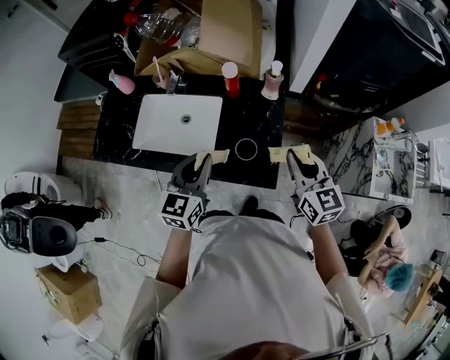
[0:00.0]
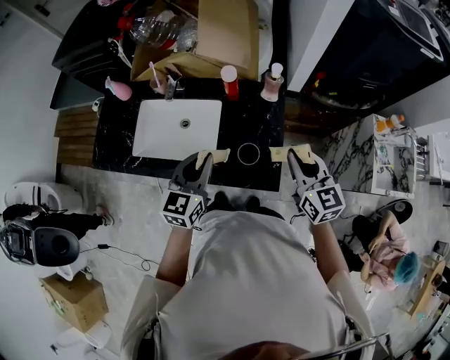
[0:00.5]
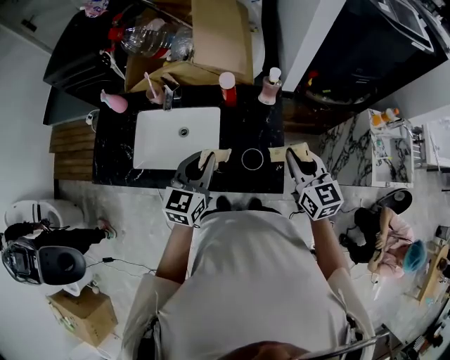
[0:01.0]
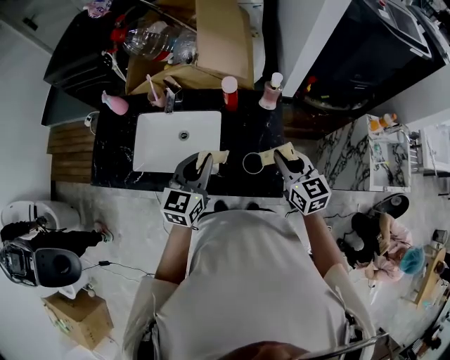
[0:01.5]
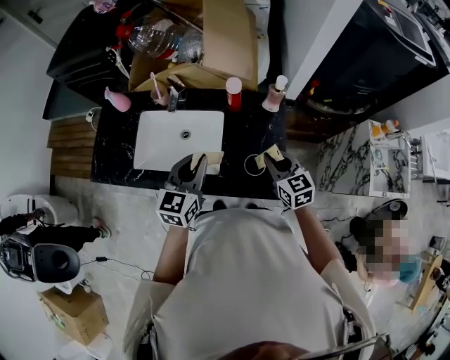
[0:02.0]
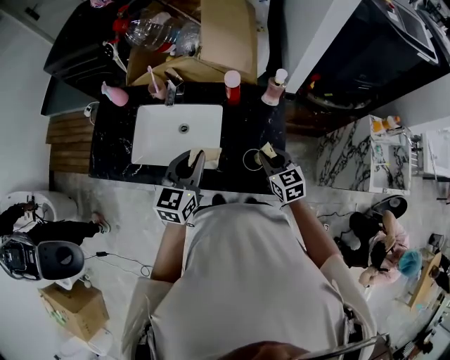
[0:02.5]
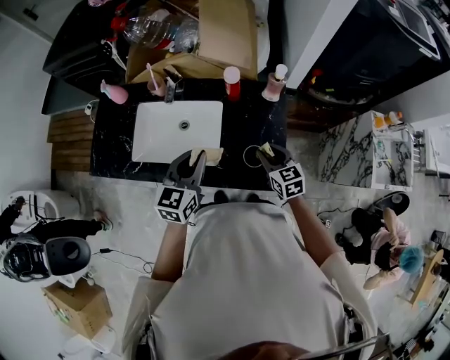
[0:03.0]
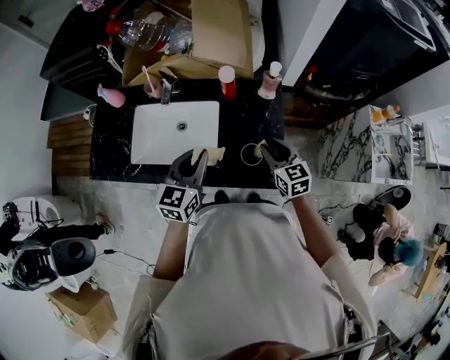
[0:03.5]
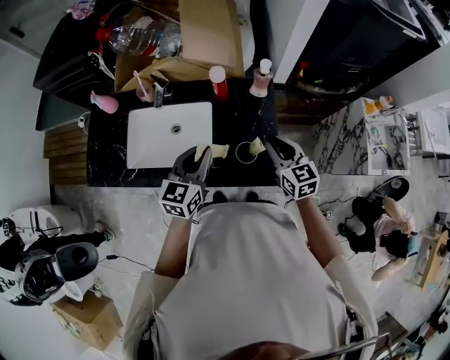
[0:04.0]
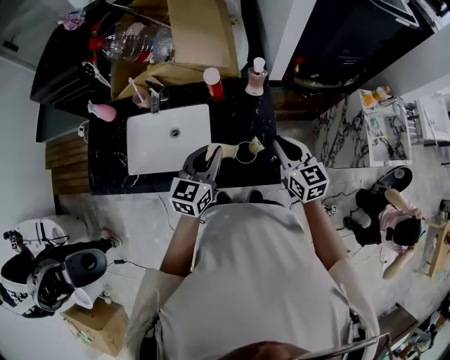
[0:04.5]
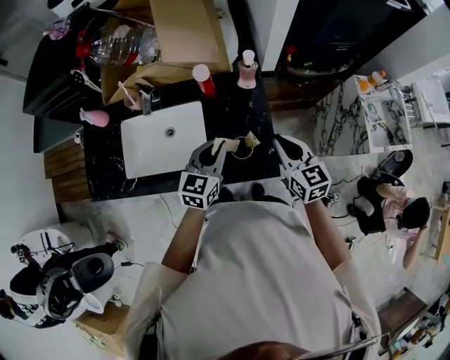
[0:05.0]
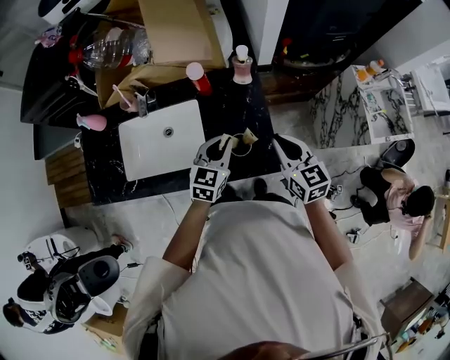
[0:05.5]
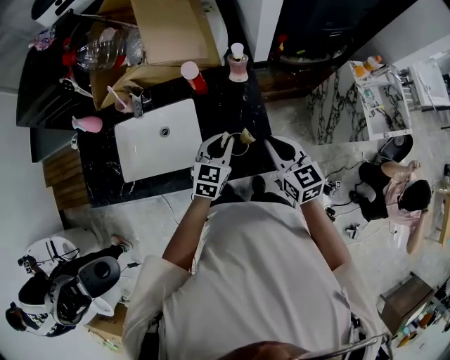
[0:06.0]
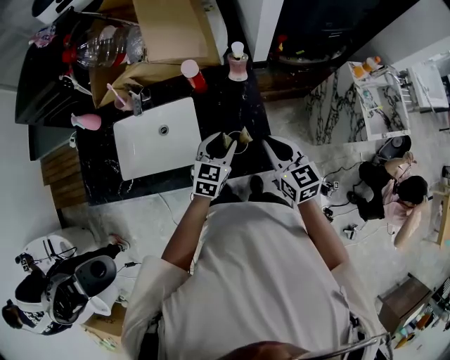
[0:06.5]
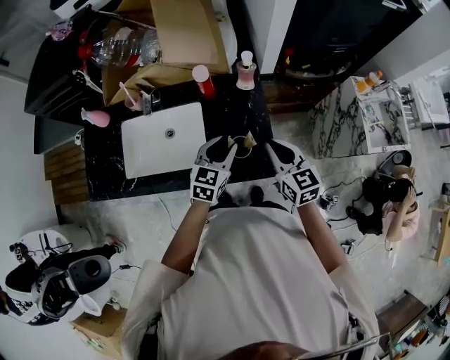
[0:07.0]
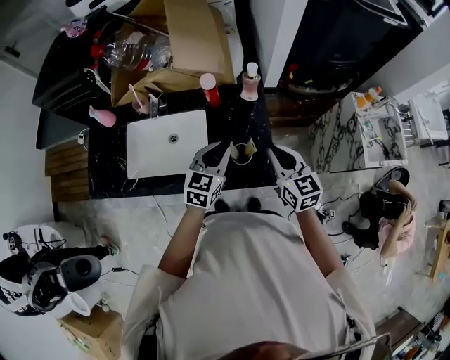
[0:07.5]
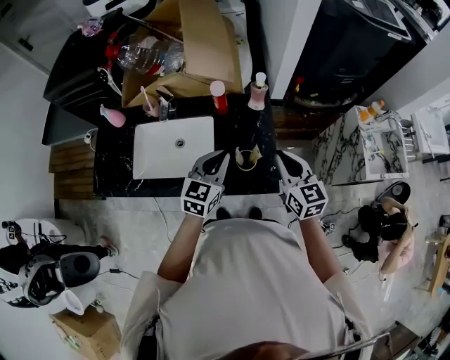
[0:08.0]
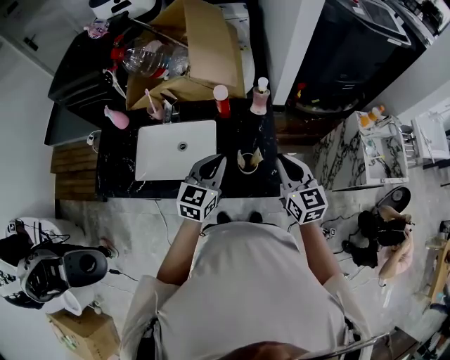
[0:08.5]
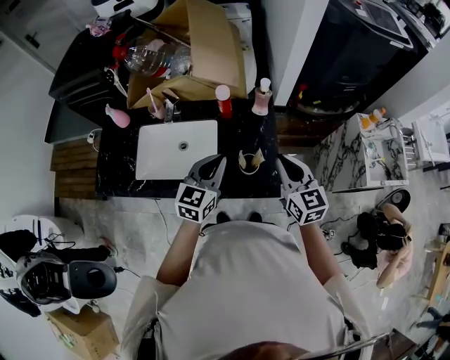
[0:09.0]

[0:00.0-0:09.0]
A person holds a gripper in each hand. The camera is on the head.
0:00.0 to 0:02.0: The left gripper travels forward and to the left by some 10 cm; the right gripper heads downward, to the left and forward, covering roughly 15 cm.
0:02.0 to 0:04.5: Both grippers travel together to the right, roughly 5 cm.
0:04.5 to 0:07.0: The left gripper is displaced downward and to the right by about 10 cm, and opens up.
0:07.0 to 0:09.0: The left gripper goes roughly 10 cm upward and to the left, and closes up. Meanwhile the right gripper travels upward by approximately 5 cm.

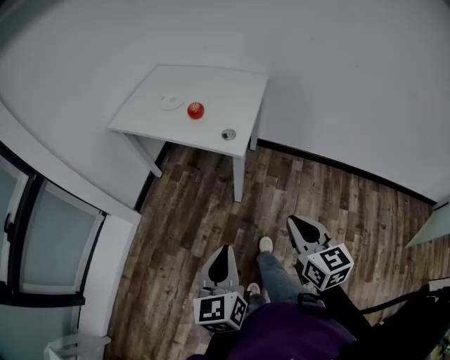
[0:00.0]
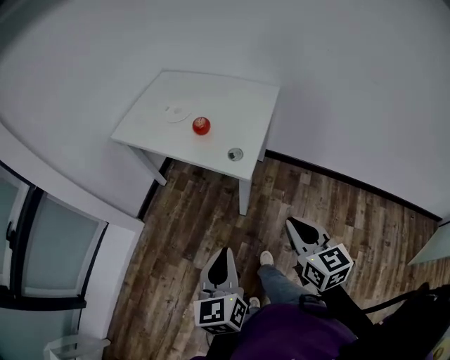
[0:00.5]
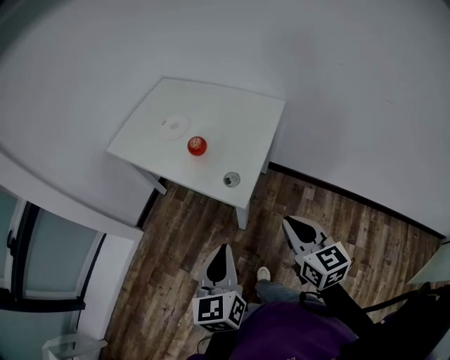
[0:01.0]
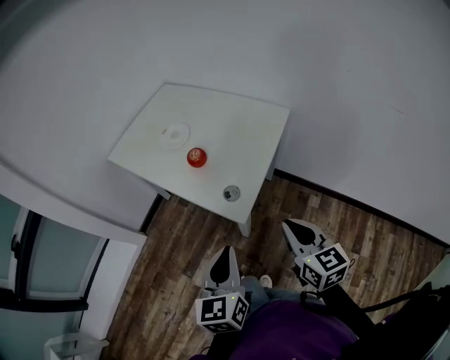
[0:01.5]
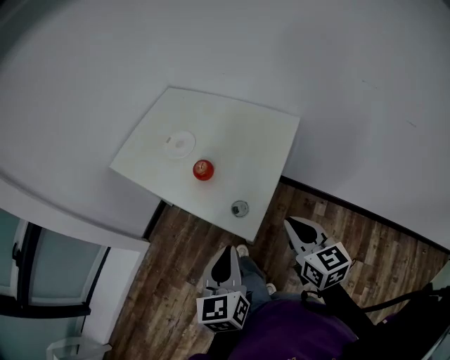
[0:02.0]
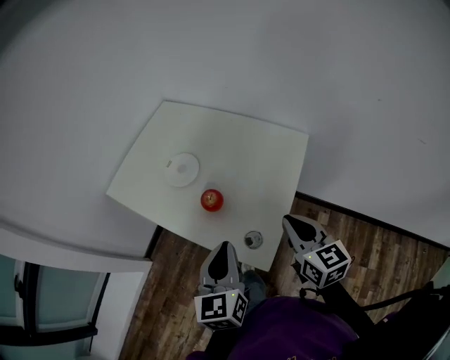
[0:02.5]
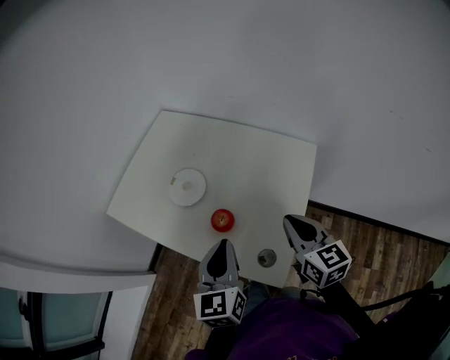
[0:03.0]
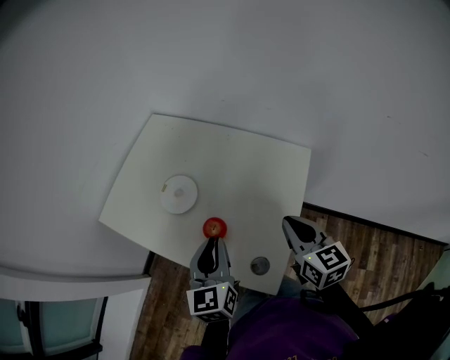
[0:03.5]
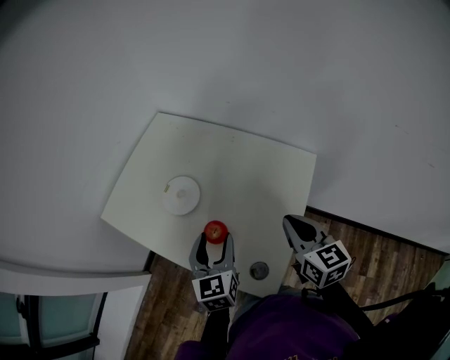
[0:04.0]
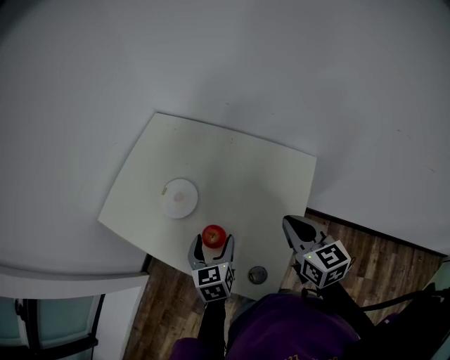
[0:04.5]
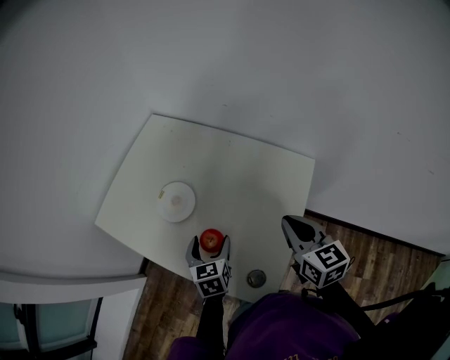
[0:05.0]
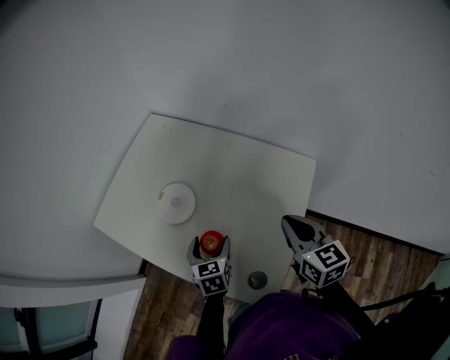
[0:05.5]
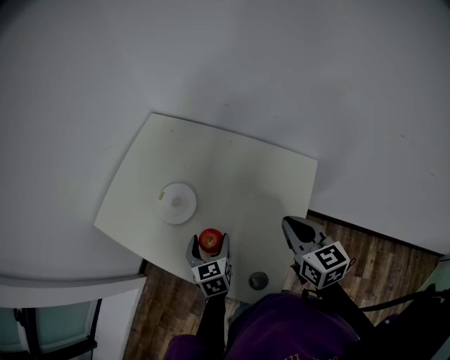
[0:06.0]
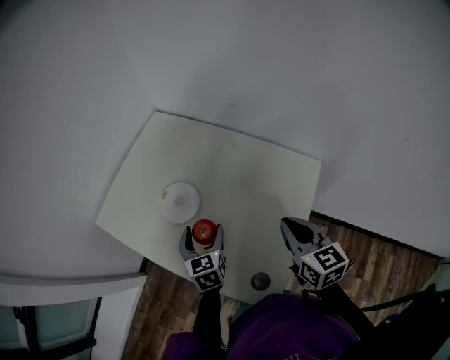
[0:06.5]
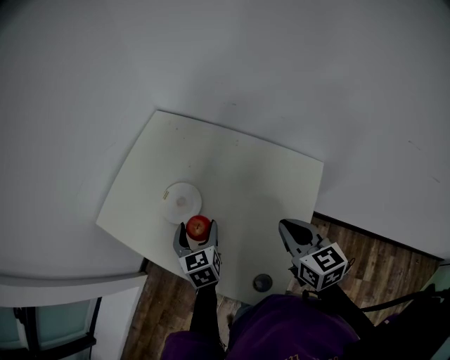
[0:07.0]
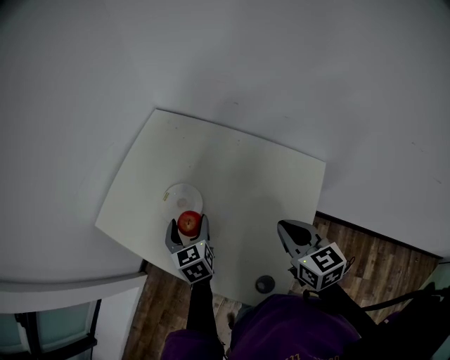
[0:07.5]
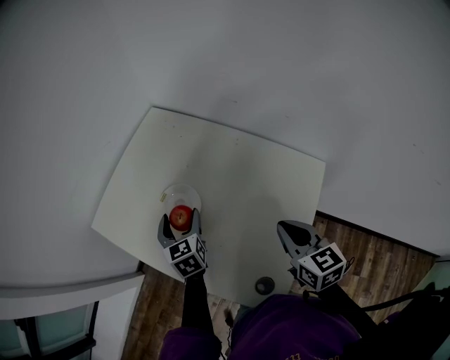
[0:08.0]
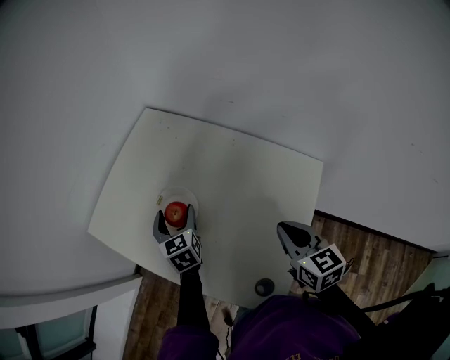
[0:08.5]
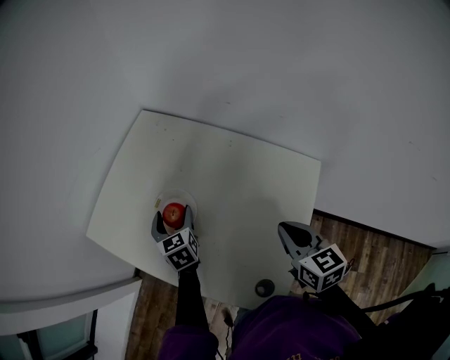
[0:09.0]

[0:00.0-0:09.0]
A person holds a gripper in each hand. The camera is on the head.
0:00.0 to 0:02.0: The grippers both shift forward by about 35 cm.
0:02.0 to 0:04.5: Both grippers travel together forward, roughly 30 cm. The left gripper opens up.
0:04.5 to 0:07.0: The left gripper goes roughly 10 cm forward and to the left.
0:07.0 to 0:09.0: The left gripper moves forward, roughly 10 cm.

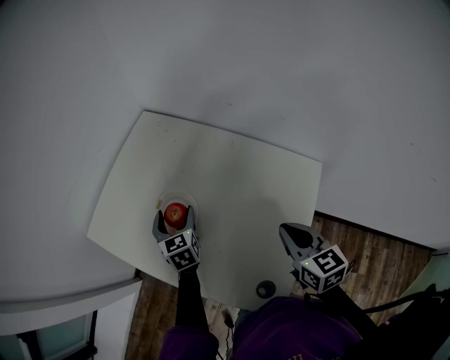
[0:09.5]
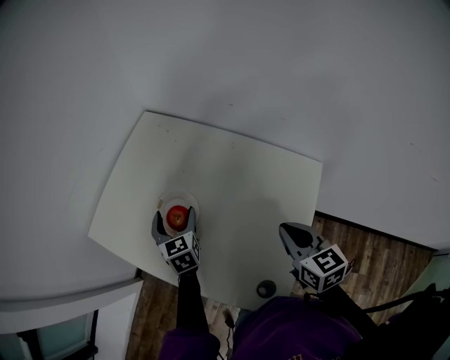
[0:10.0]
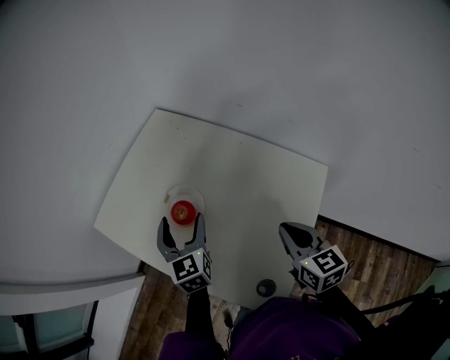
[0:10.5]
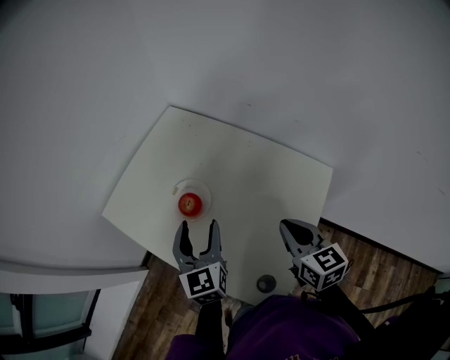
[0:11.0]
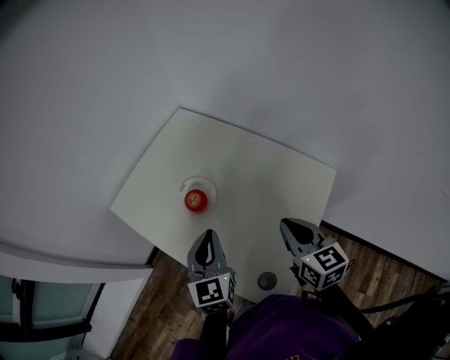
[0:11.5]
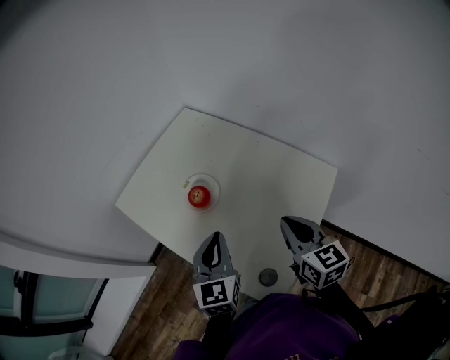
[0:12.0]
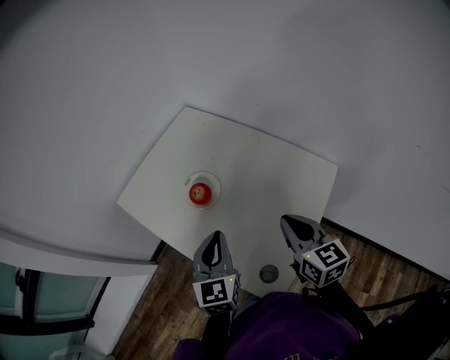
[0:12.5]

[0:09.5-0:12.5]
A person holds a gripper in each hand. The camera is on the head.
0:09.5 to 0:11.0: The left gripper travels upward and backward by approximately 20 cm.
0:11.0 to 0:12.5: The left gripper travels backward by about 10 cm, and closes up.

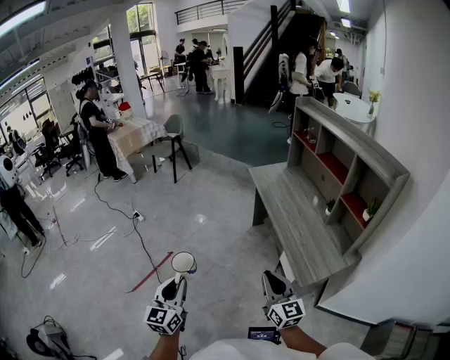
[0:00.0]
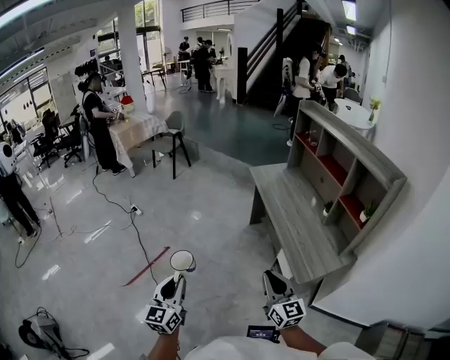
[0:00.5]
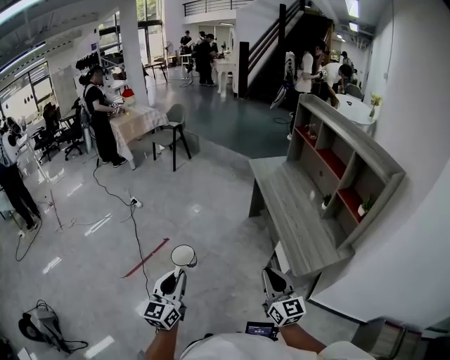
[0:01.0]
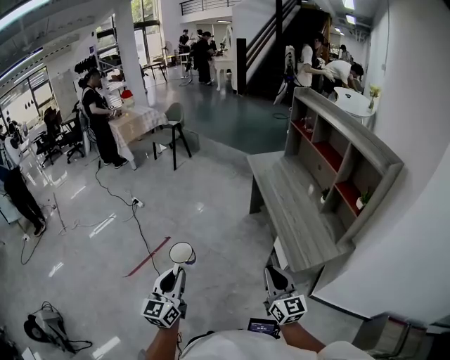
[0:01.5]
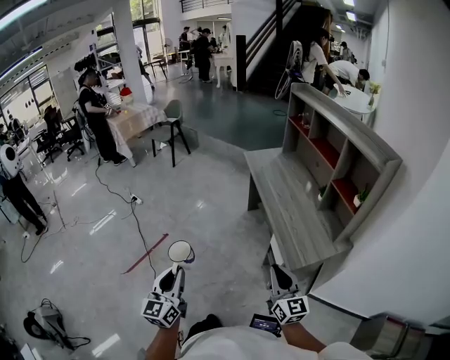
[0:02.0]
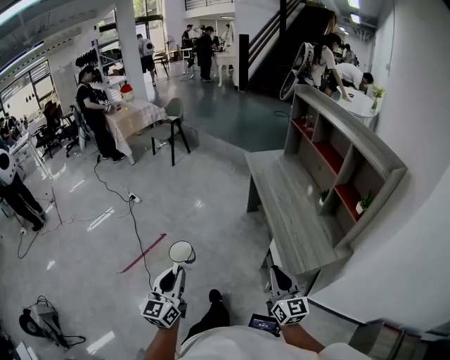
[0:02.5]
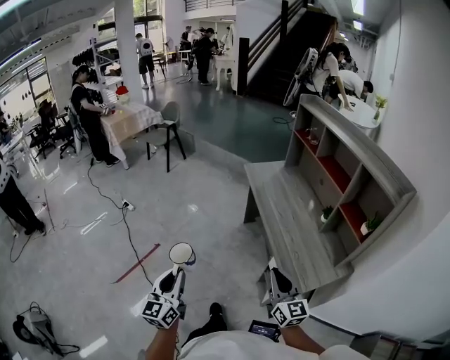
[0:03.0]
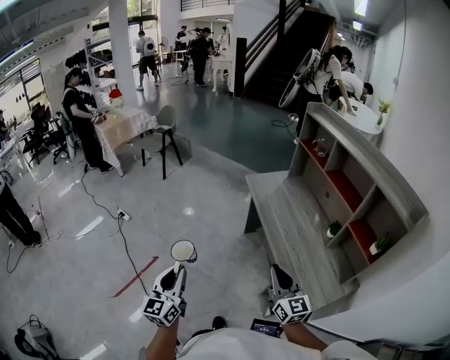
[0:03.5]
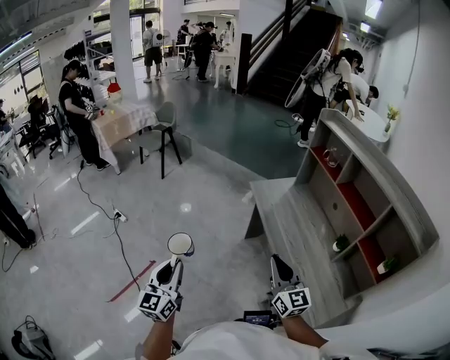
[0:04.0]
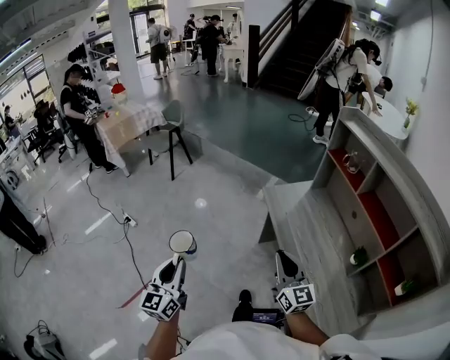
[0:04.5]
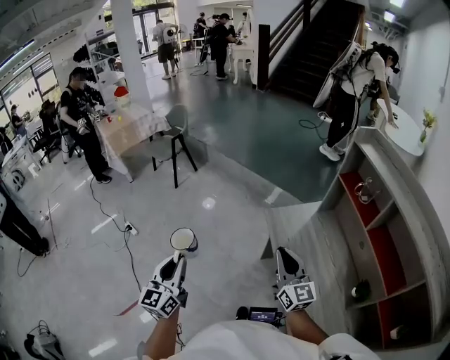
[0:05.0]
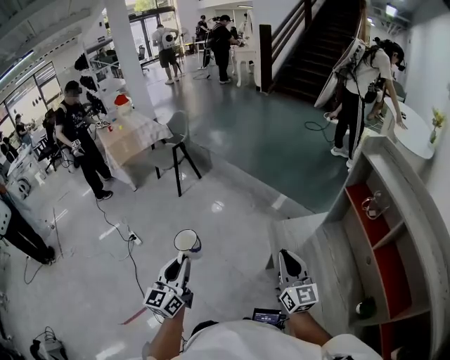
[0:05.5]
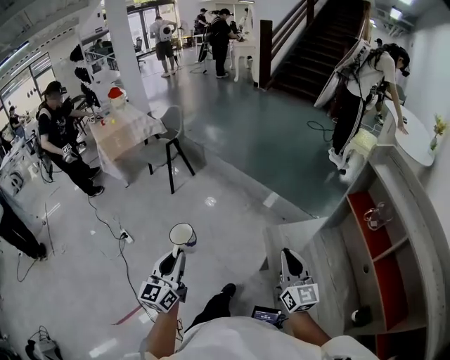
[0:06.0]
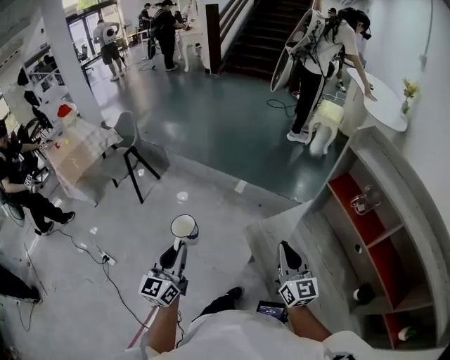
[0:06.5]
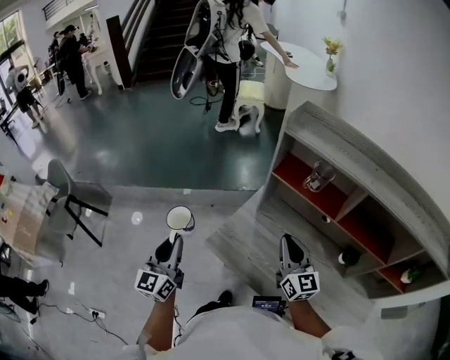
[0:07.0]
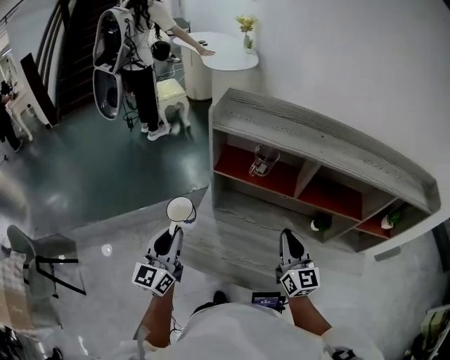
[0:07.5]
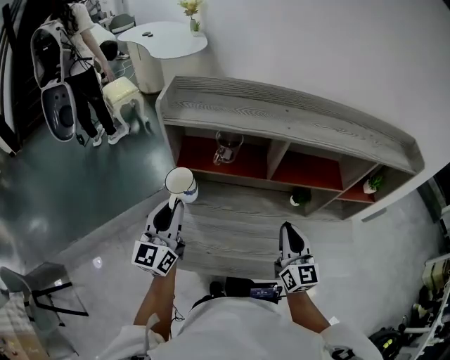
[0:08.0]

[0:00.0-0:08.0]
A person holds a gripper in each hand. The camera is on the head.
0:00.0 to 0:02.0: The left gripper heads backward, covering about 5 cm. The right gripper goes roughly 10 cm to the right and backward.
0:02.0 to 0:04.0: The pair of grippers is taken forward, approximately 40 cm.
0:04.0 to 0:06.0: The two grippers travel together, forward, roughly 50 cm.
0:06.0 to 0:08.0: The right gripper shifts by roughly 25 cm, and swivels some 80 degrees. The left gripper shifts by roughly 50 cm, and swivels approximately 80 degrees.
